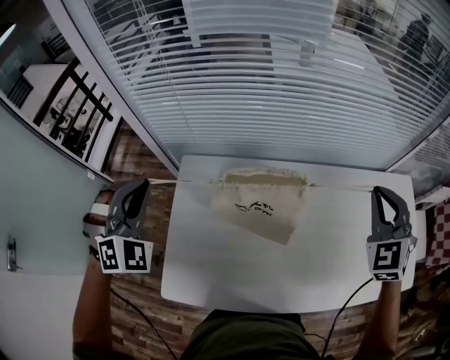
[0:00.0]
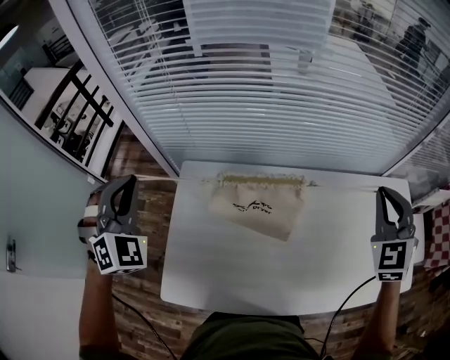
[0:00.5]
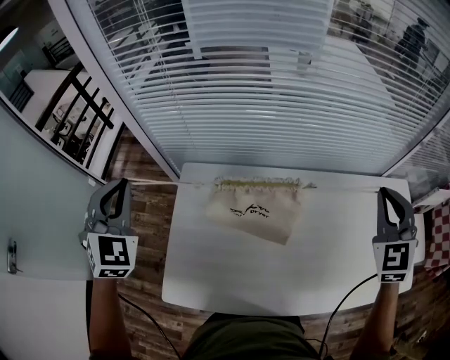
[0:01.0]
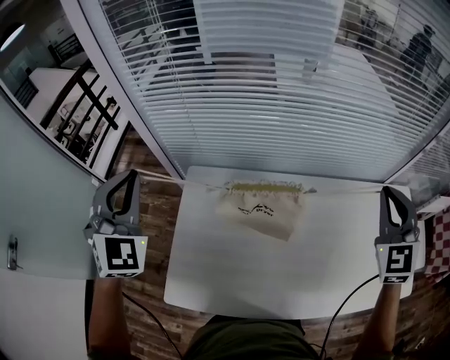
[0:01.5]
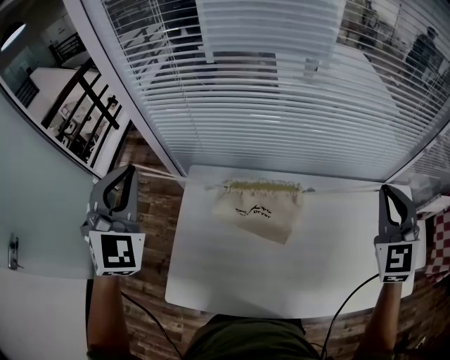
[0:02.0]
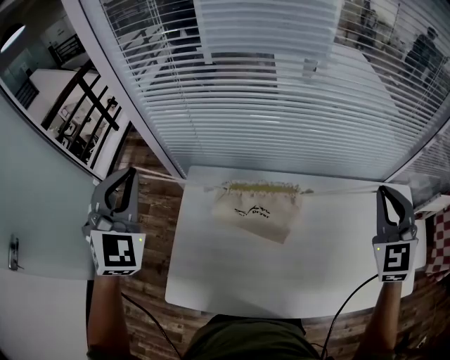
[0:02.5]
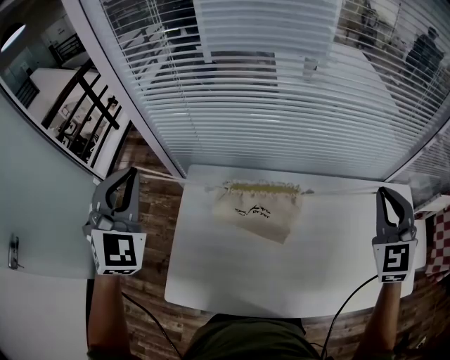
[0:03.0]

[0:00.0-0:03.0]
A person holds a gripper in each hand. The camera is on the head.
0:00.0 to 0:01.5: The left gripper is displaced upward by approximately 5 cm, and swivels approximately 20 degrees.
0:01.5 to 0:03.0: The two grippers keep their place.

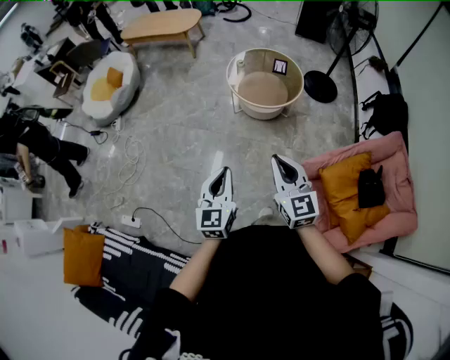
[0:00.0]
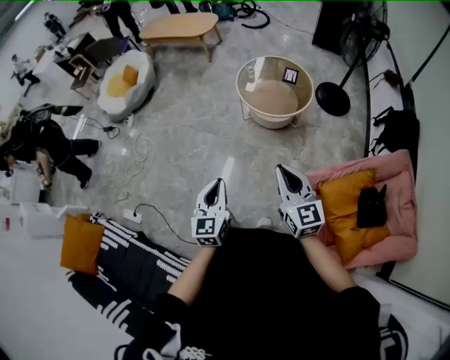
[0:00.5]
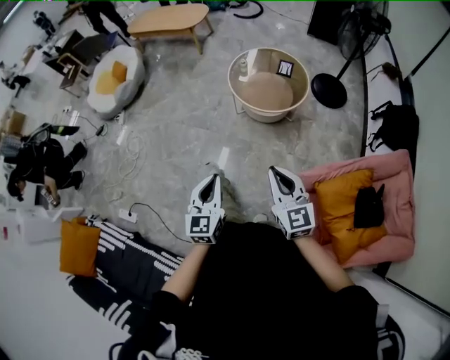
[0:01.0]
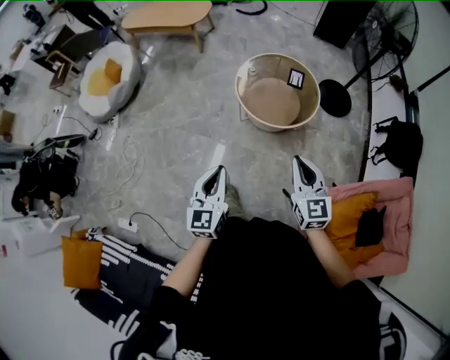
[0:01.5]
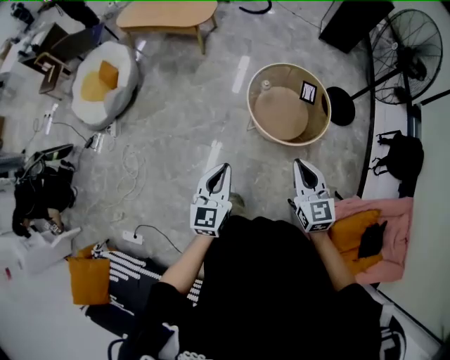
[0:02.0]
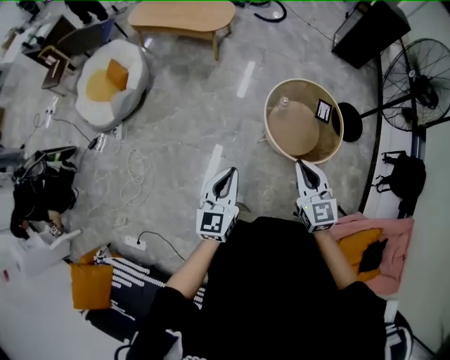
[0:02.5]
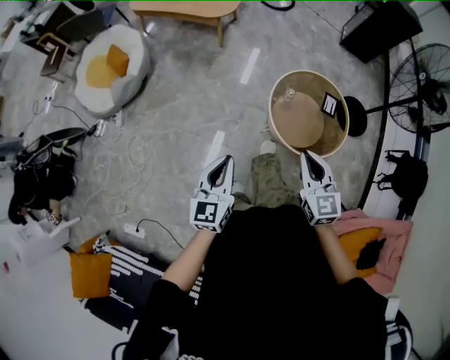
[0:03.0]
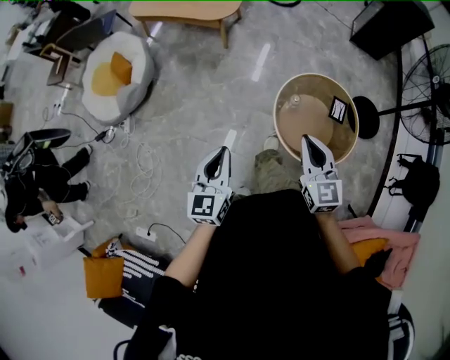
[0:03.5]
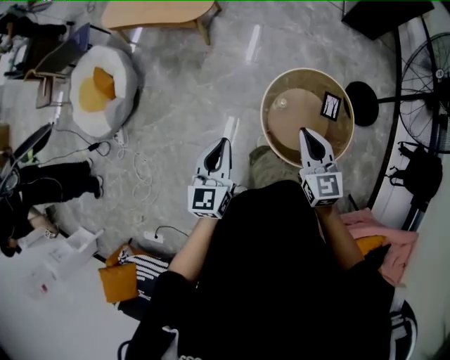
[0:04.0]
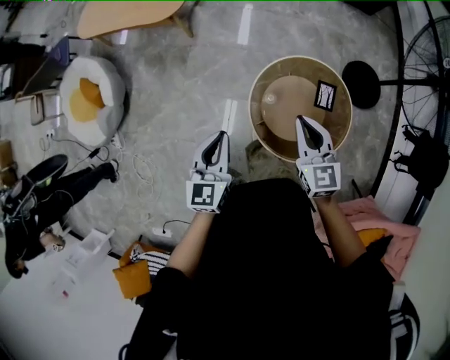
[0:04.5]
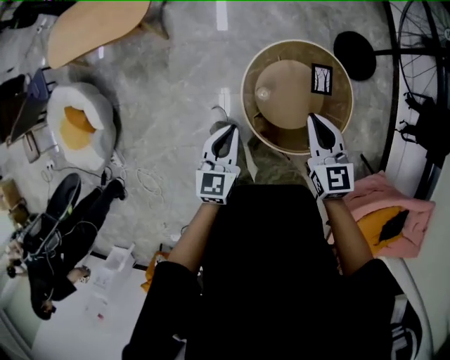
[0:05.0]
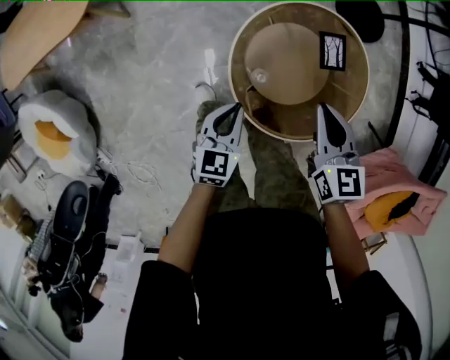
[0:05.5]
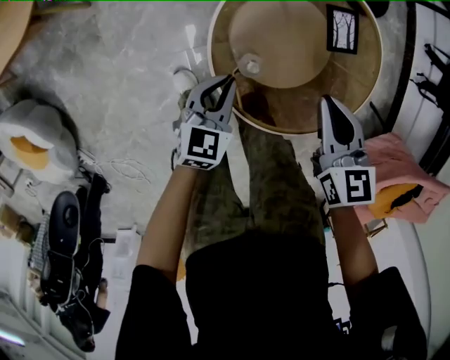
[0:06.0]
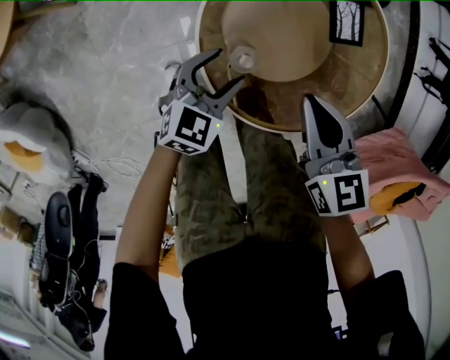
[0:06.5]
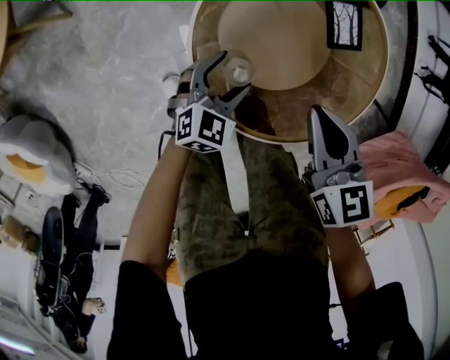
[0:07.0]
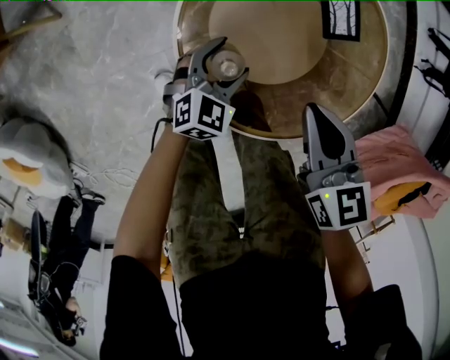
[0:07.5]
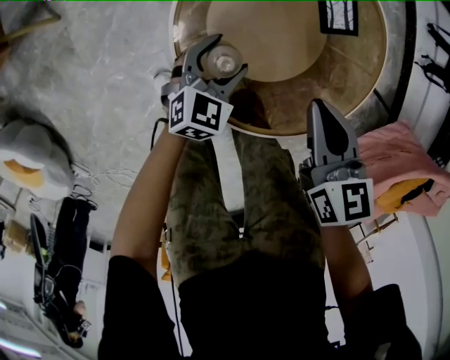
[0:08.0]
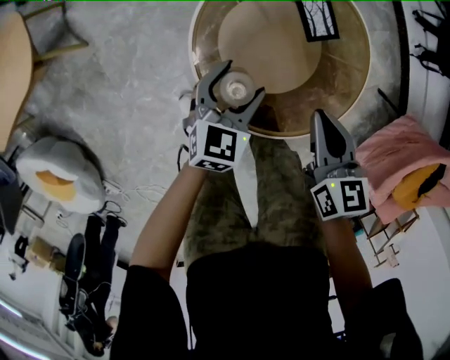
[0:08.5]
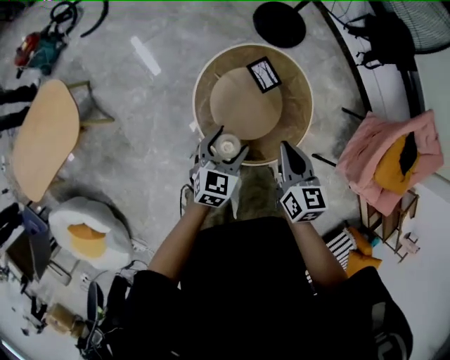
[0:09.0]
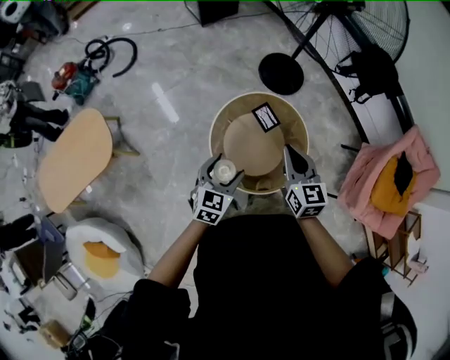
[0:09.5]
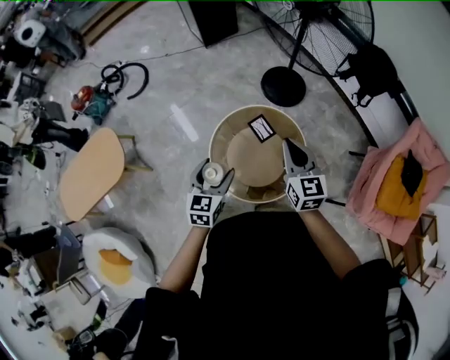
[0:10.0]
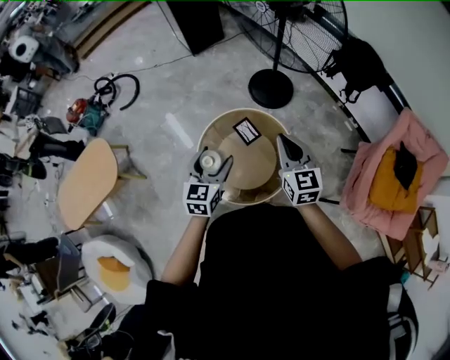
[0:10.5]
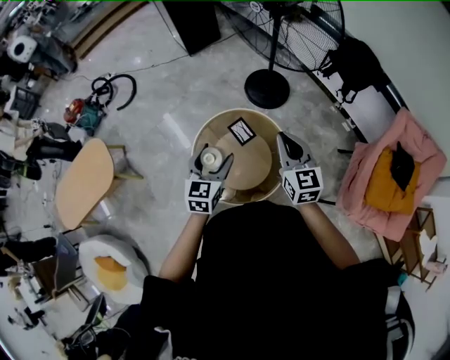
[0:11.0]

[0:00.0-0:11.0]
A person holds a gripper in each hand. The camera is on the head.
0:00.0 to 0:02.0: The pair of grippers is taken forward, roughly 40 cm.
0:02.0 to 0:03.5: The right gripper travels forward by about 25 cm; the left gripper is displaced forward and to the left by about 25 cm.
0:03.5 to 0:05.5: The left gripper ends up some 60 cm from where it was, and turns by about 50 degrees, while the right gripper changes place by approximately 50 cm, and changes its angle by roughly 40 degrees.
0:05.5 to 0:07.5: The right gripper moves downward, about 20 cm; the left gripper heads downward and to the right, covering approximately 30 cm, swivels about 40 degrees, and opens its fingers.
0:07.5 to 0:09.0: The grippers both shift upward by approximately 35 cm. The right gripper changes its angle by approximately 30 degrees.
0:09.0 to 0:11.0: The right gripper is displaced to the right and upward by approximately 30 cm, and rotates about 20 degrees. The left gripper shifts some 30 cm upward and to the right.

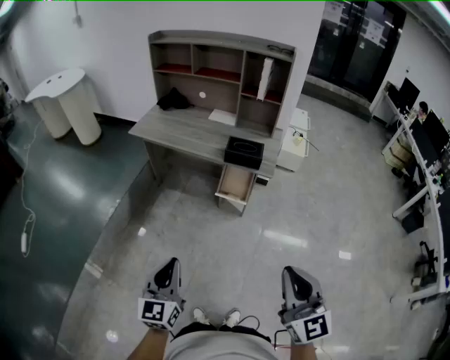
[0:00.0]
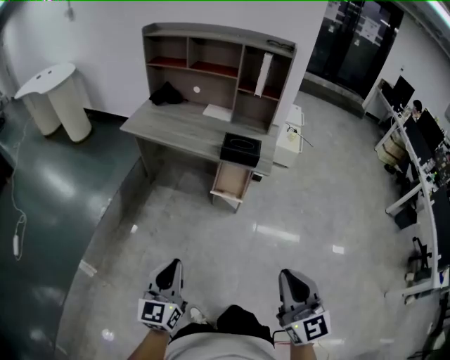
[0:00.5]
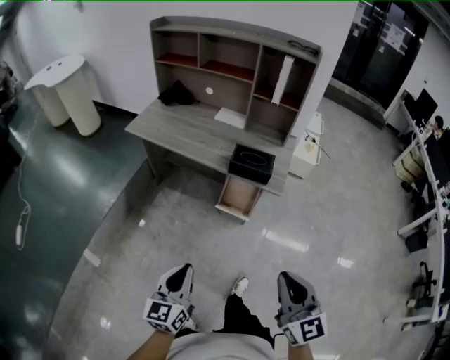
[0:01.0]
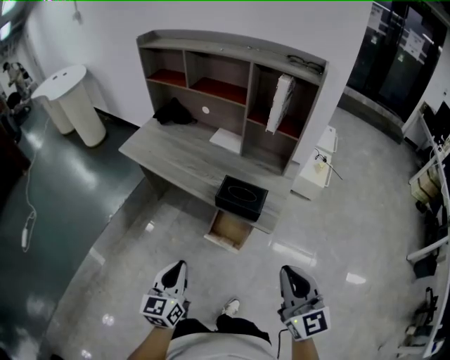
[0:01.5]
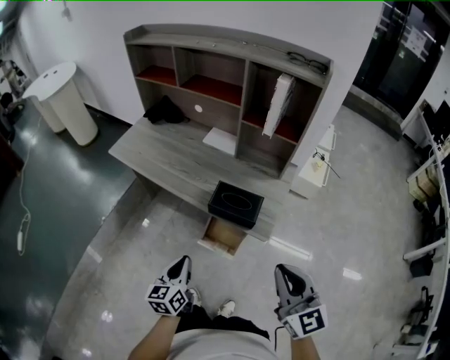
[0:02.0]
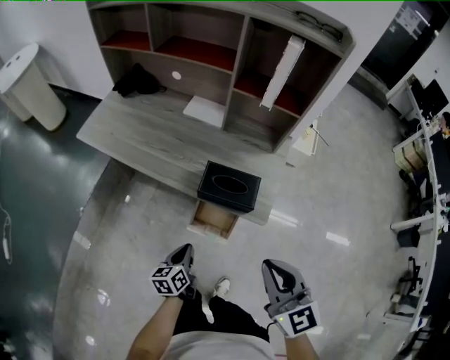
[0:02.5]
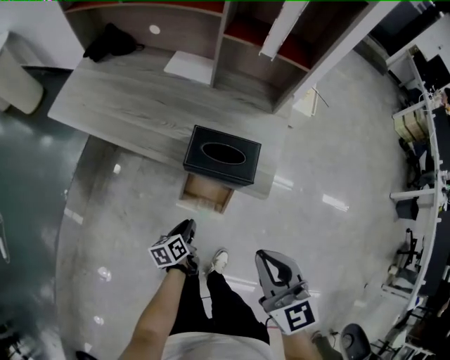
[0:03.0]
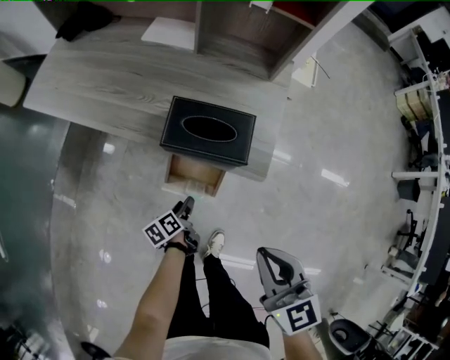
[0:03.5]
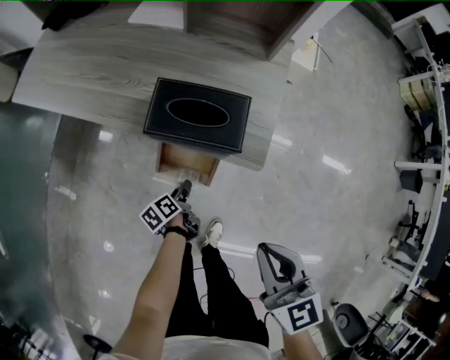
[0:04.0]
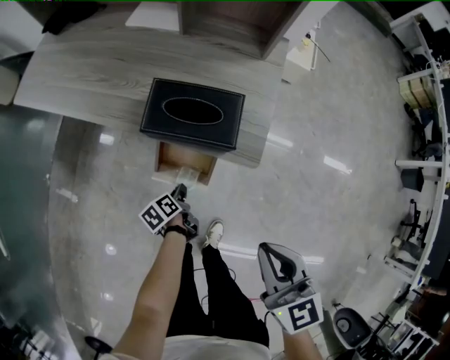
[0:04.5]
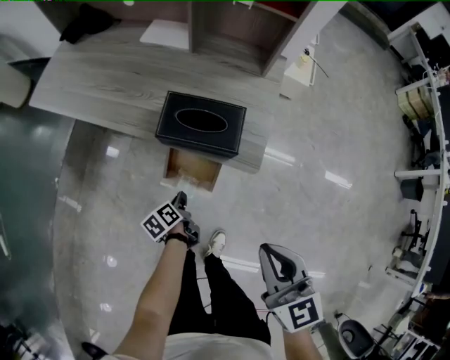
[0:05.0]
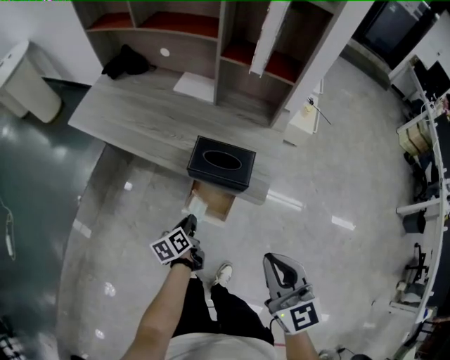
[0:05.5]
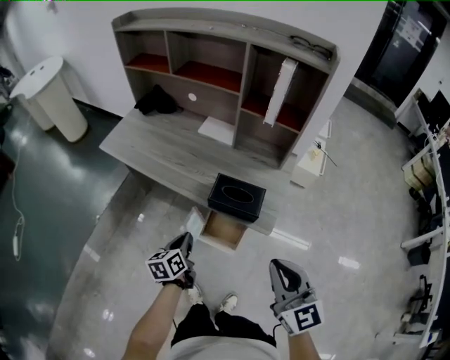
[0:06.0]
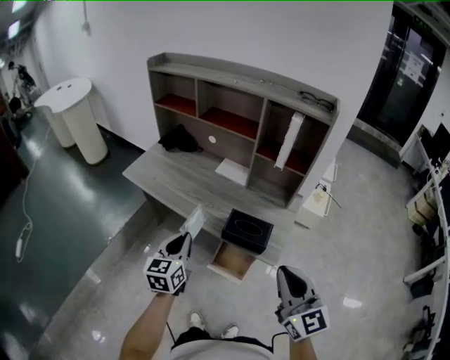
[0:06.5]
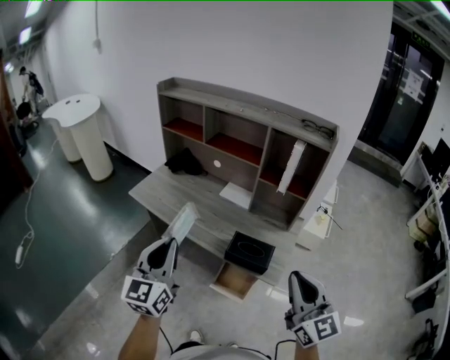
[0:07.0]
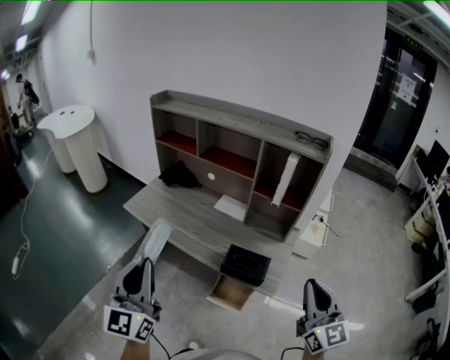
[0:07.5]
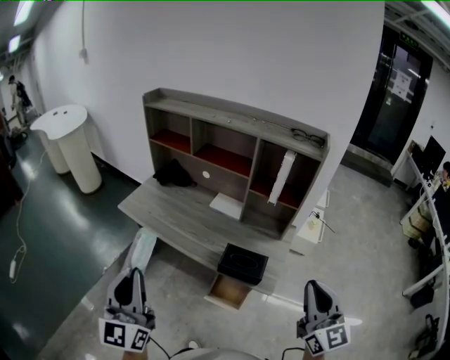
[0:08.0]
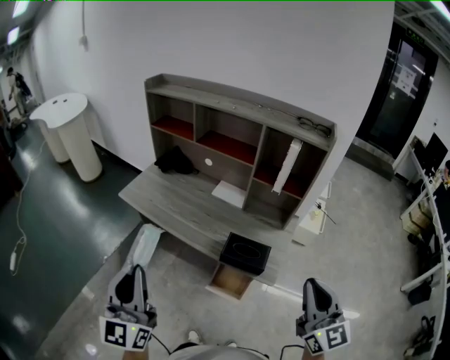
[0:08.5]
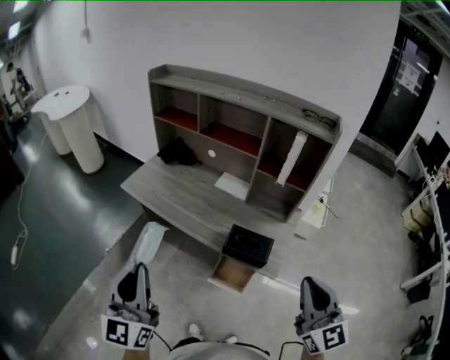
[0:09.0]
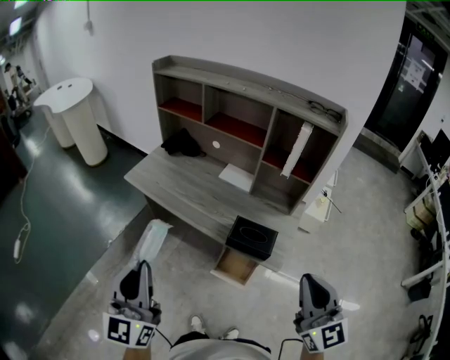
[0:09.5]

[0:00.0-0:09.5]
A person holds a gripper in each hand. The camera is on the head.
0:00.0 to 0:02.0: The left gripper travels forward and to the right by about 40 cm, and rotates about 30 degrees. Meanwhile the right gripper moves forward, about 40 cm.
0:02.0 to 0:04.0: The right gripper is displaced downward by approximately 20 cm, and changes its angle by about 20 degrees, while the left gripper travels downward by roughly 35 cm, rotates about 50 degrees, and opens up.
0:04.0 to 0:05.5: The left gripper goes approximately 15 cm upward, rotates approximately 20 degrees, and closes up; the right gripper travels upward by some 10 cm.
0:05.5 to 0:07.5: The right gripper moves upward, about 20 cm, and changes its angle by roughly 20 degrees. Meanwhile the left gripper heads upward, covering some 50 cm, and points its fingers some 50 degrees further upward.
0:07.5 to 0:09.5: The left gripper ends up about 5 cm from where it was. Meanwhile the right gripper is displaced to the left by about 5 cm.

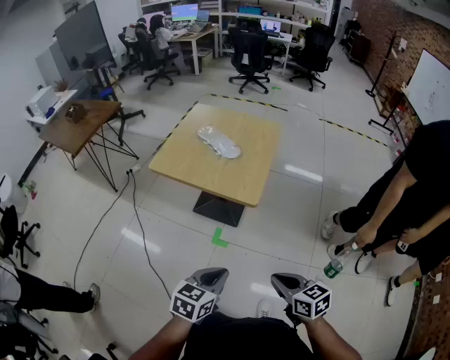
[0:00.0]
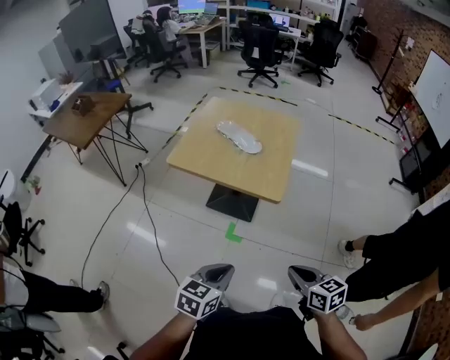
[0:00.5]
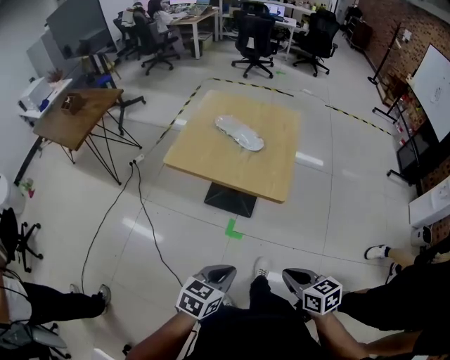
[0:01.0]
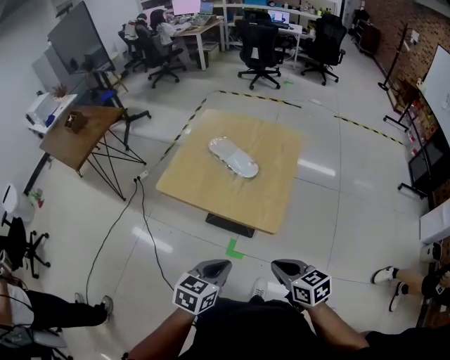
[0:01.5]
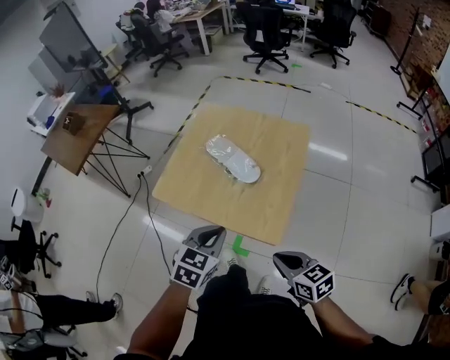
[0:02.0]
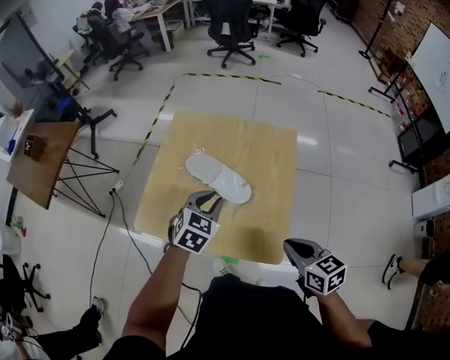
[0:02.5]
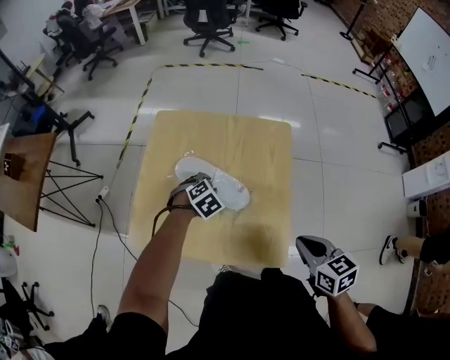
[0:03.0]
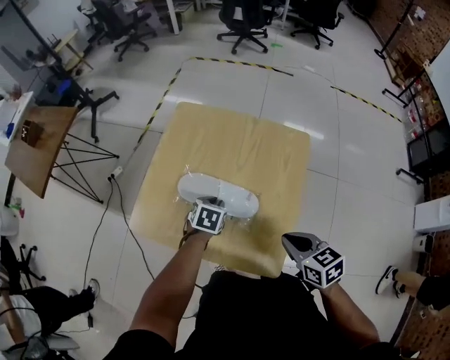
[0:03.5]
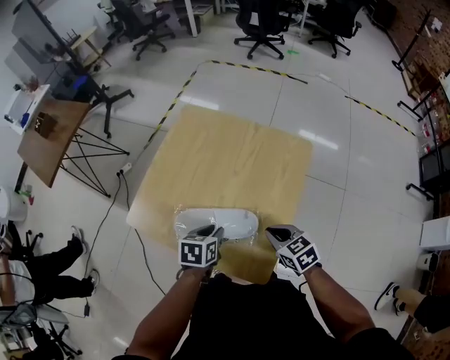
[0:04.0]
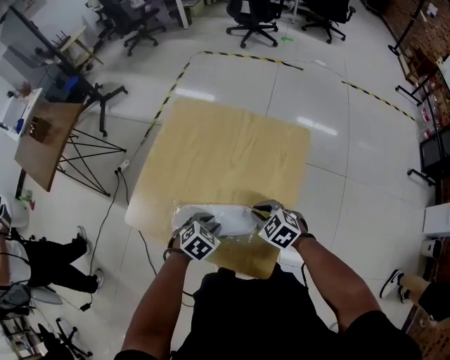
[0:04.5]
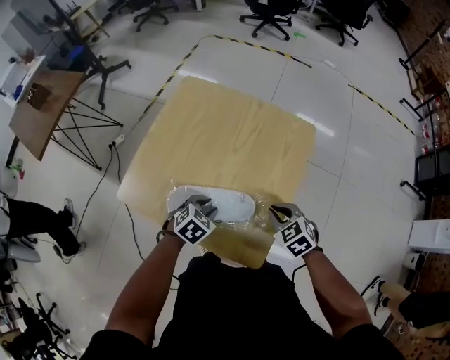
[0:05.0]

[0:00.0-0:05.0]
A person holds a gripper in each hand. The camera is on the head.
0:00.0 to 0:02.5: Both grippers move forward, approximately 50 cm. The left gripper changes its angle by approximately 30 degrees.
0:02.5 to 0:05.0: The left gripper moves up and down over roughly 15 cm, changing direction 2 times, and swivels some 20 degrees; the right gripper shifts roughly 20 cm downward and forward, and turns by some 40 degrees.
